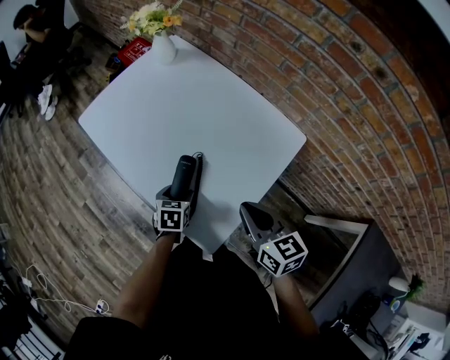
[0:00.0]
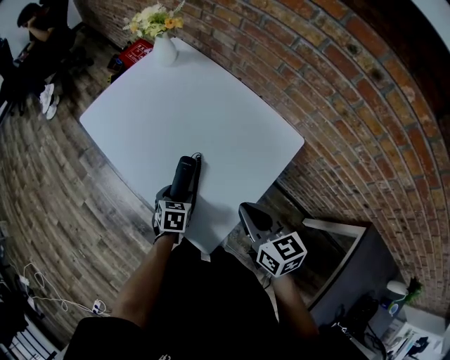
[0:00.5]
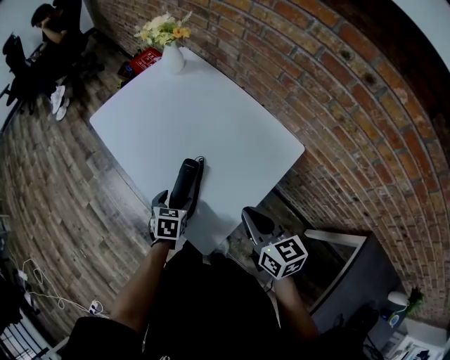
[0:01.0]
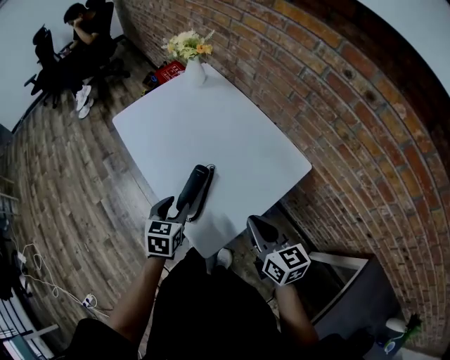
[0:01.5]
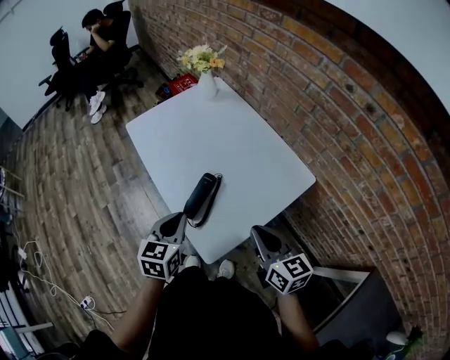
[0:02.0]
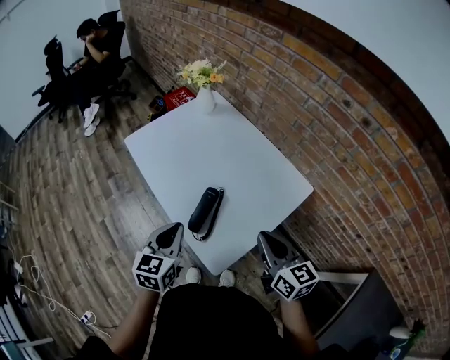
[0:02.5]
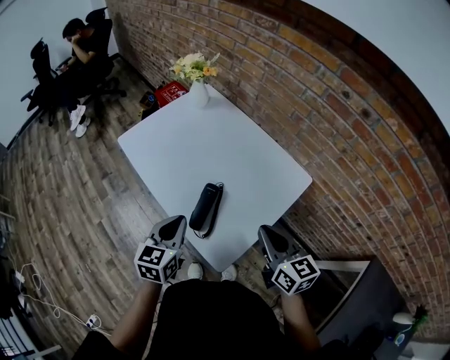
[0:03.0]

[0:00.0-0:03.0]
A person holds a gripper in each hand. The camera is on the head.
0:00.0 to 0:01.5: The left gripper moves upward, approximately 15 cm.
0:01.5 to 0:03.0: The left gripper heads upward, covering approximately 10 cm, and closes up.

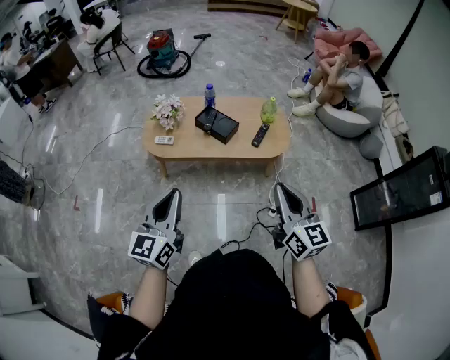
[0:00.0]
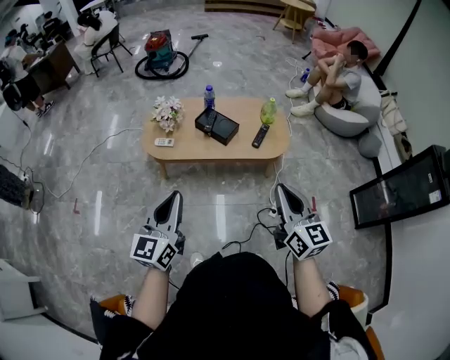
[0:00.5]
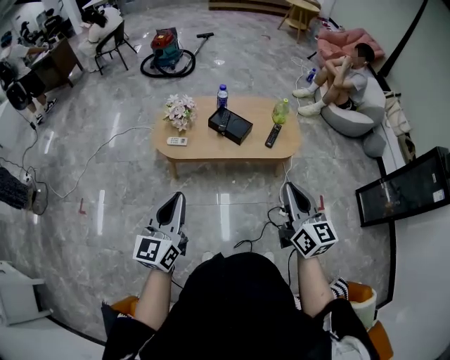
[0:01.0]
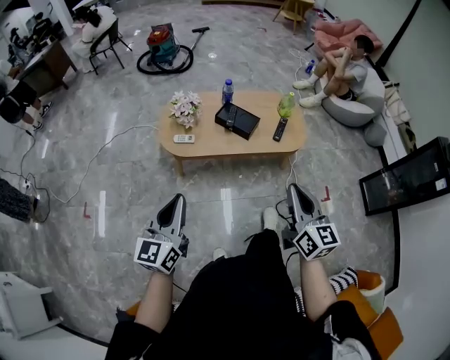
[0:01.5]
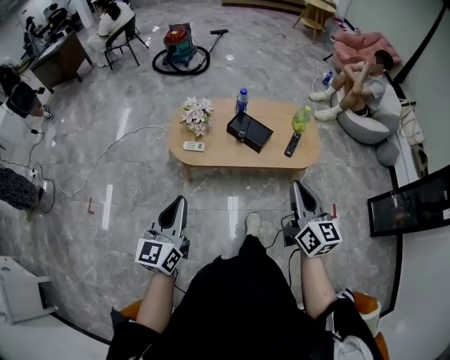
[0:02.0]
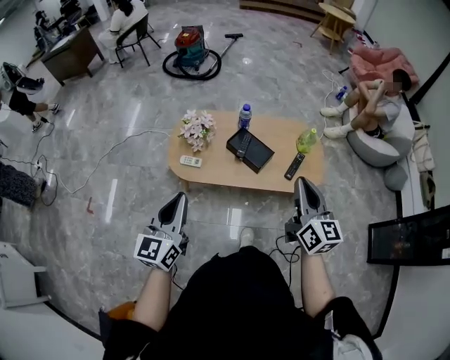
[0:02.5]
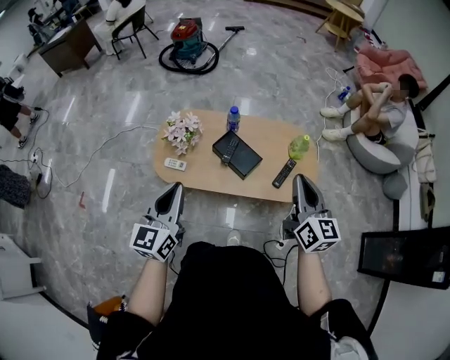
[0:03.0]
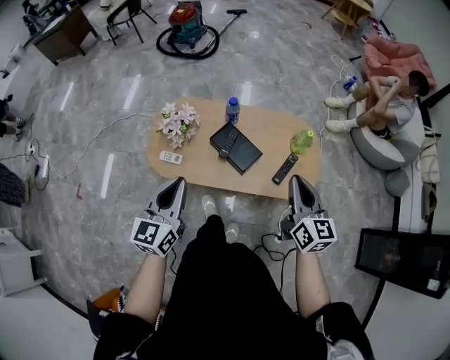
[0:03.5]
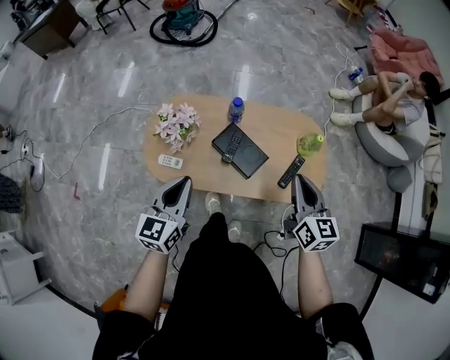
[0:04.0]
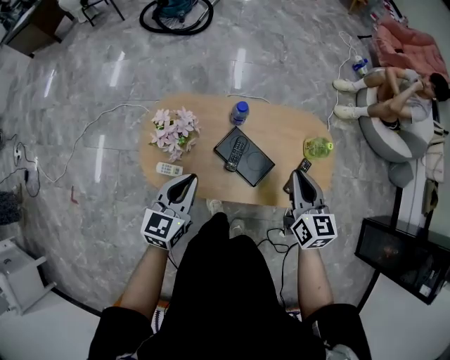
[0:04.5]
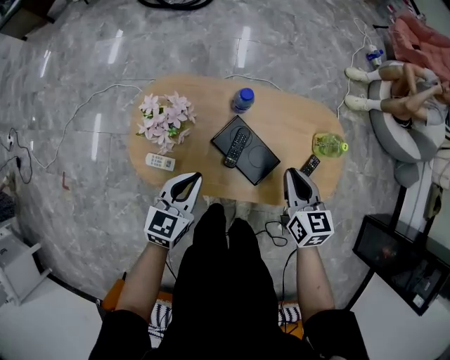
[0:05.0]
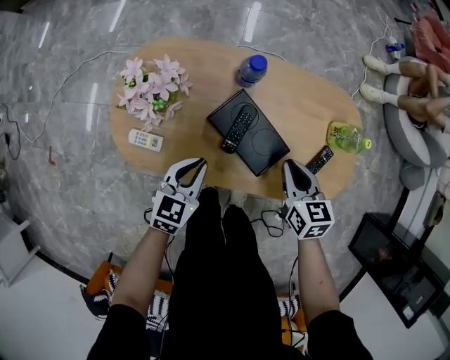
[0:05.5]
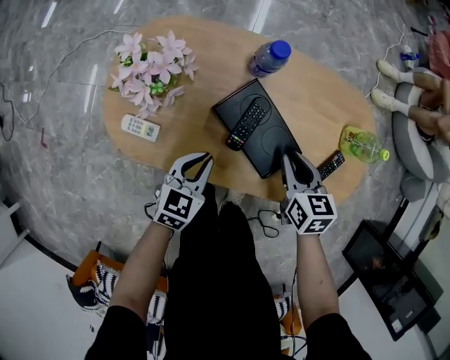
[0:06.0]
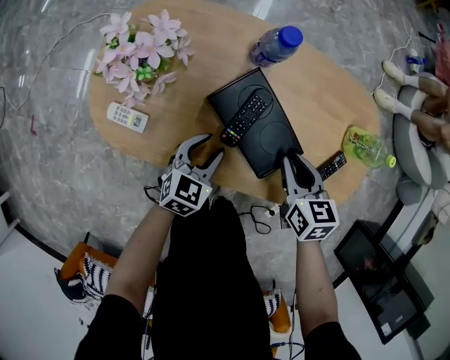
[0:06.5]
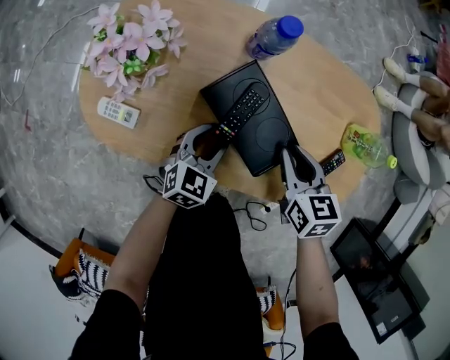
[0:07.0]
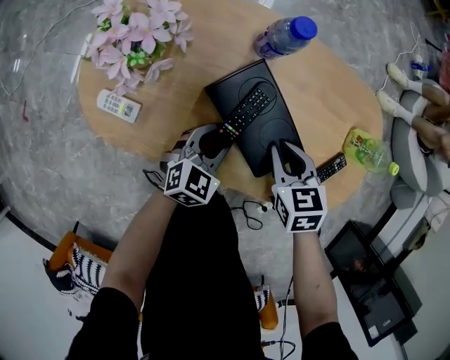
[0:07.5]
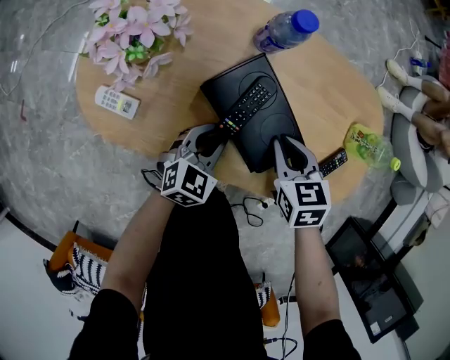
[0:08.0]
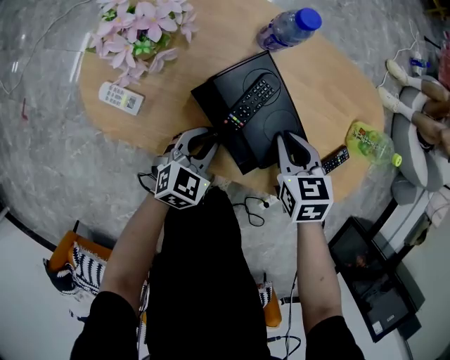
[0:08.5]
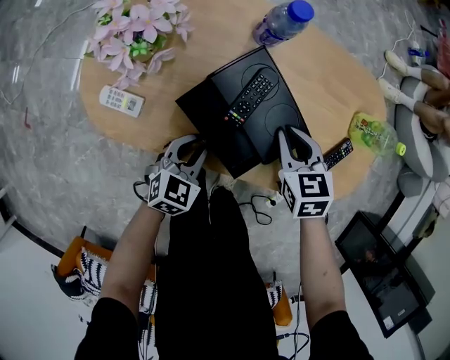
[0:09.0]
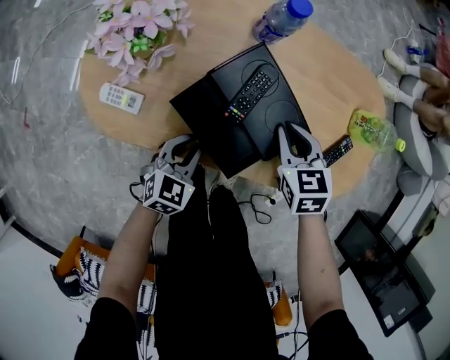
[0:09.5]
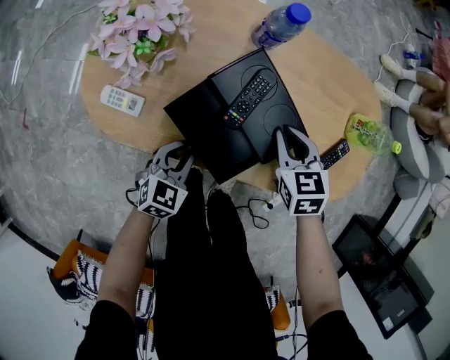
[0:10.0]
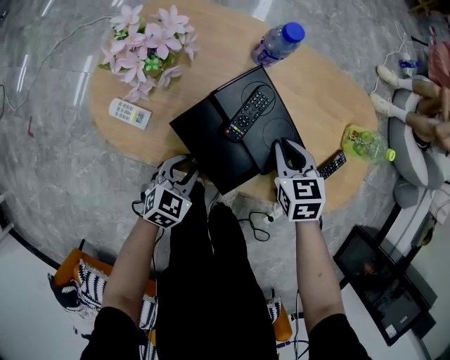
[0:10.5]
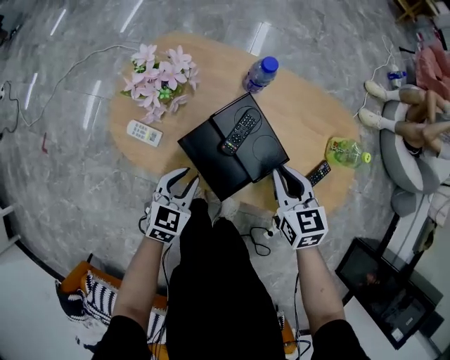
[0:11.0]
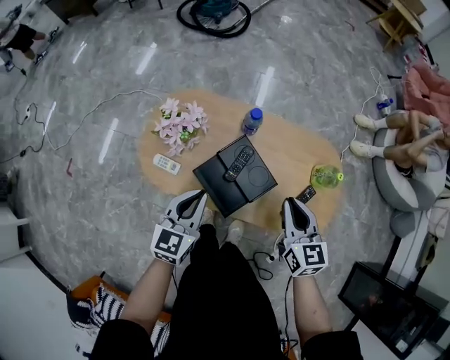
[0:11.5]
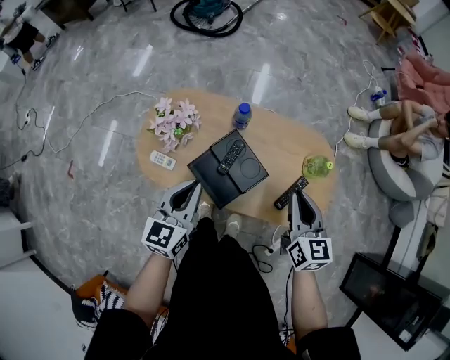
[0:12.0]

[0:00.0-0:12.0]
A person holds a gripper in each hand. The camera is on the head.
0:00.0 to 0:02.0: The right gripper shifts approximately 15 cm to the left and forward. The left gripper is displaced to the left by approximately 15 cm.
0:02.0 to 0:04.0: Both grippers travel together forward, approximately 35 cm.
0:04.0 to 0:06.0: Both grippers travel together downward, some 35 cm. The right gripper rotates approximately 30 degrees. Meanwhile the left gripper turns by some 30 degrees.
0:06.0 to 0:08.0: The right gripper changes place by some 5 cm, while the left gripper is displaced downward and to the right by some 10 cm.
0:08.0 to 0:10.0: The left gripper travels backward and to the left by about 10 cm.
0:10.0 to 0:12.0: The two grippers go some 35 cm upward. The left gripper turns by about 30 degrees; the right gripper swivels some 30 degrees.

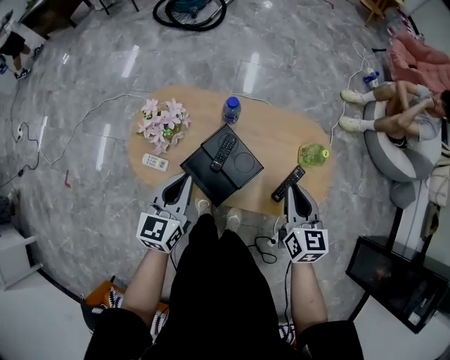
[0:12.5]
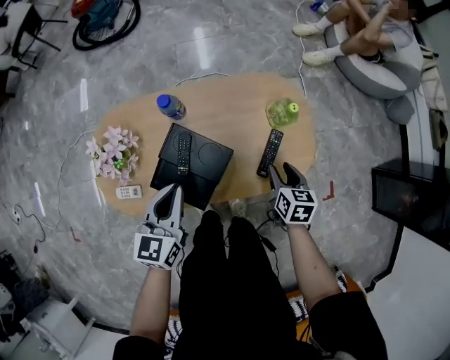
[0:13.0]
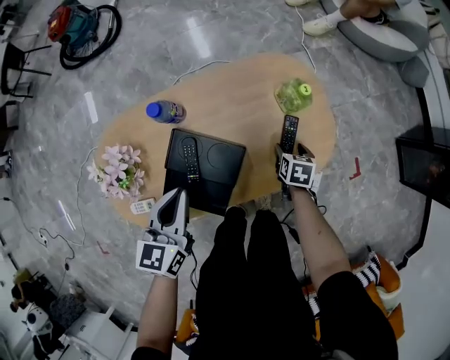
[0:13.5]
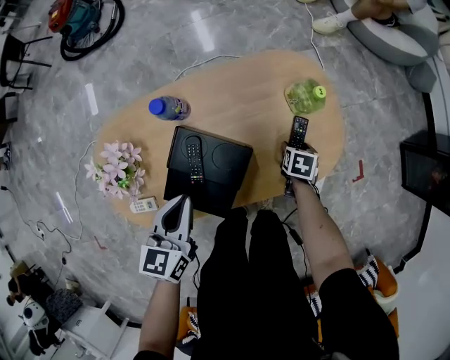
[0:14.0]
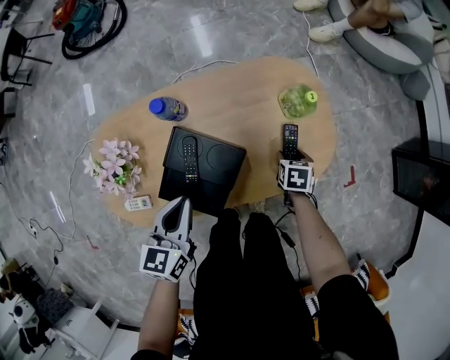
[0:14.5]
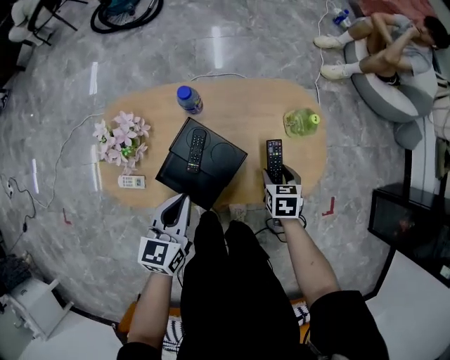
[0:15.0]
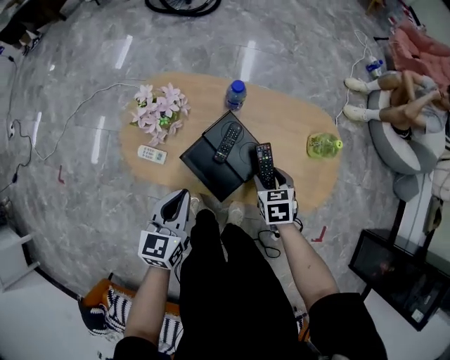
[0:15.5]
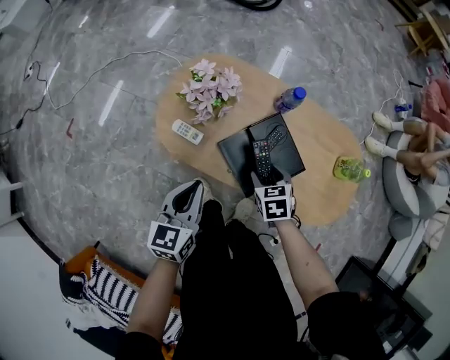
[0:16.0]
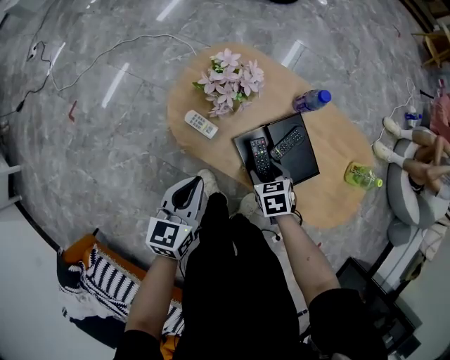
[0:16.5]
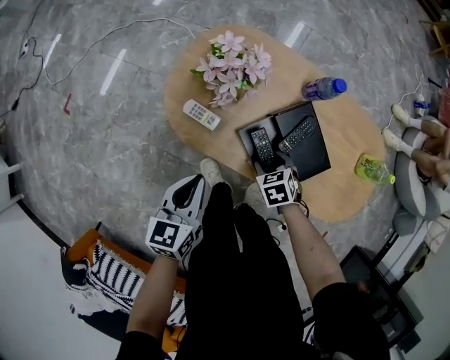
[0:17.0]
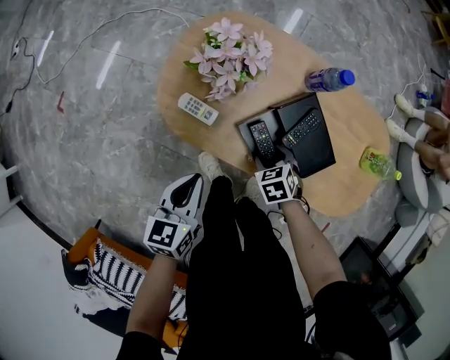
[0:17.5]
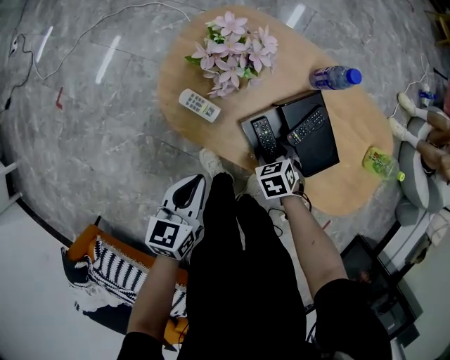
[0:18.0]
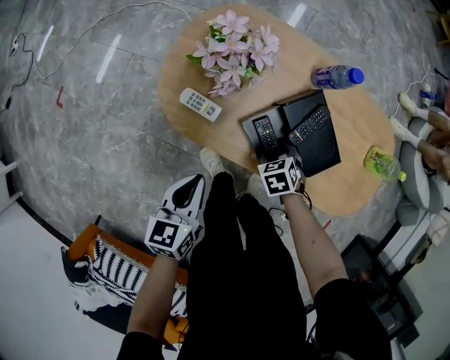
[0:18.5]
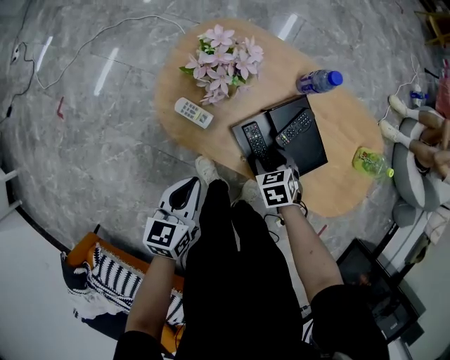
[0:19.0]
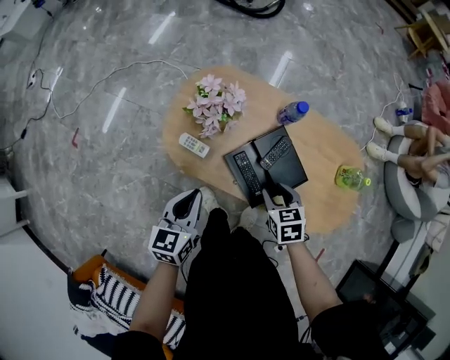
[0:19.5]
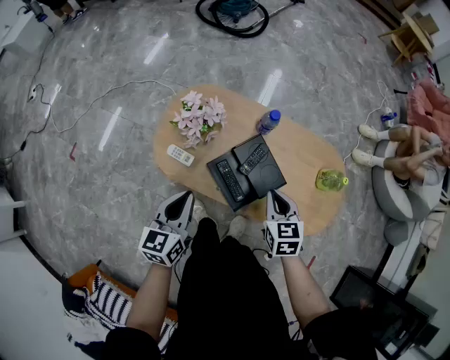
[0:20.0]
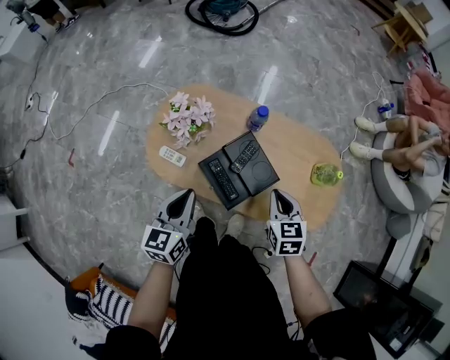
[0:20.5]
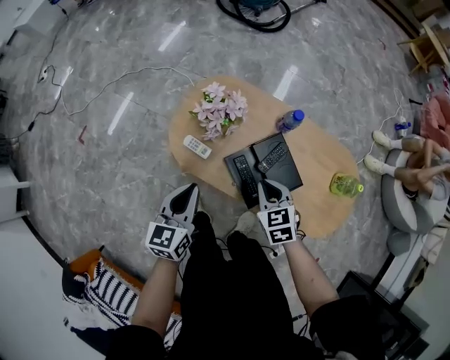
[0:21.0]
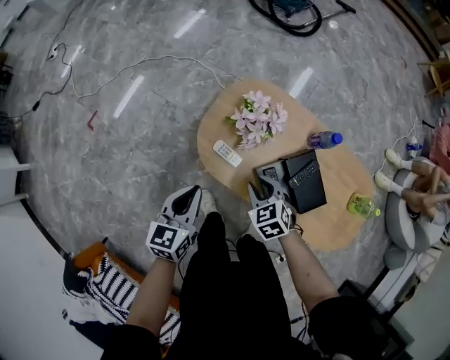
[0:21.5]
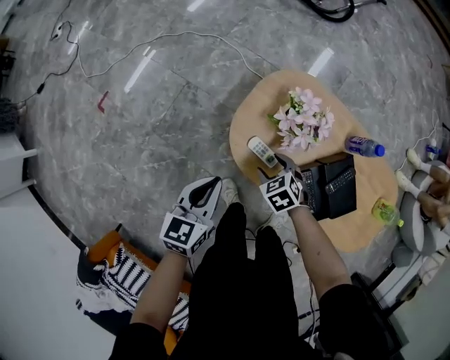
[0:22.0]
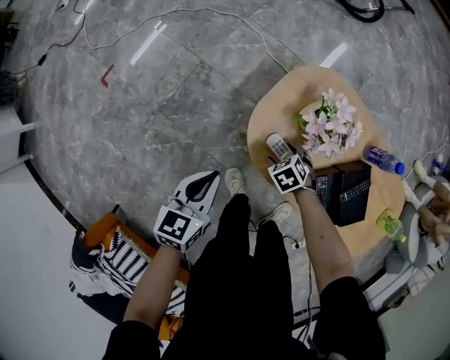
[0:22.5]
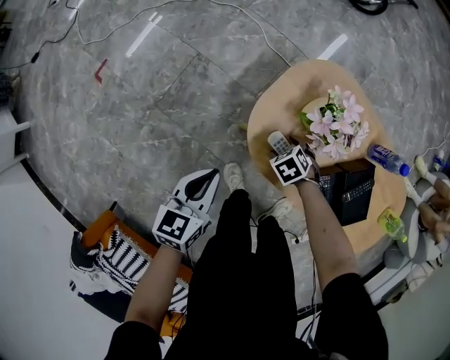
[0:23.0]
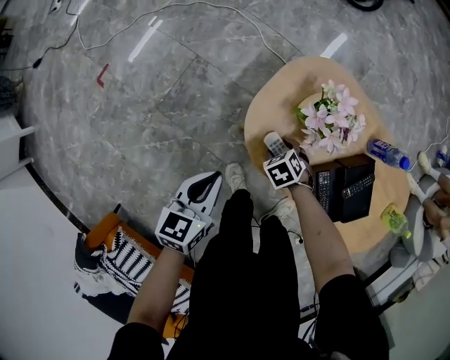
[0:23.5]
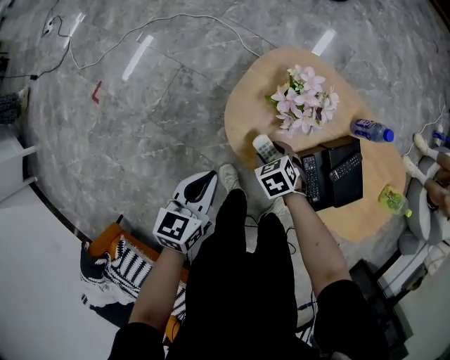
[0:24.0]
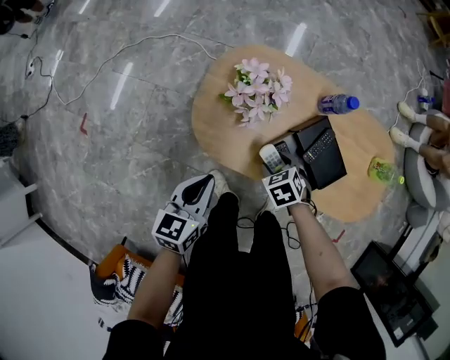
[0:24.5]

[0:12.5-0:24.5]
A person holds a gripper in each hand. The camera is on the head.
0:12.5 to 0:14.5: The right gripper shifts approximately 35 cm downward, tilts its fingers approximately 40 degrees downward, and opens. The left gripper is displaced downward by approximately 10 cm, and rotates about 20 degrees.
0:14.5 to 0:16.5: The left gripper shifts by some 25 cm, and changes its angle by about 40 degrees. Meanwhile the right gripper shifts by roughly 35 cm, and twists roughly 60 degrees counterclockwise, seen from behind.
0:16.5 to 0:18.5: Both grippers travel together downward, approximately 10 cm.
0:18.5 to 0:20.5: The right gripper moves upward and to the right, approximately 30 cm, angles its fingers upward, by about 30 degrees, and closes, while the left gripper is displaced upward and to the right by about 20 cm.
0:20.5 to 0:22.5: The right gripper moves approximately 50 cm, tips its fingers downward by about 40 degrees, and opens. The left gripper moves about 35 cm.
0:22.5 to 0:24.5: The left gripper changes place by some 15 cm. Meanwhile the right gripper changes place by roughly 20 cm, and changes its angle by roughly 20 degrees.
